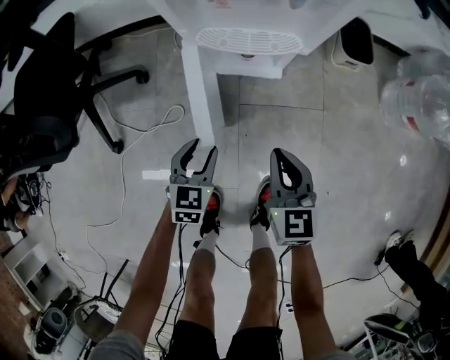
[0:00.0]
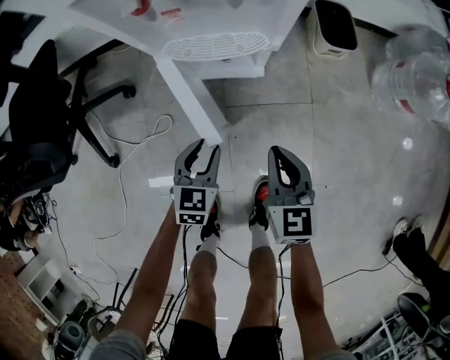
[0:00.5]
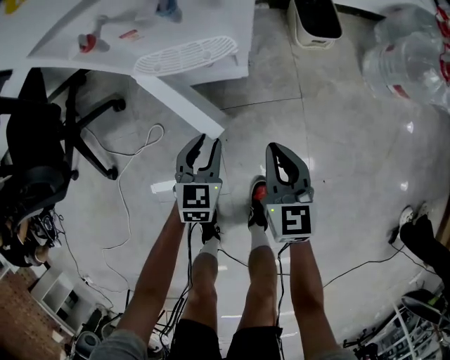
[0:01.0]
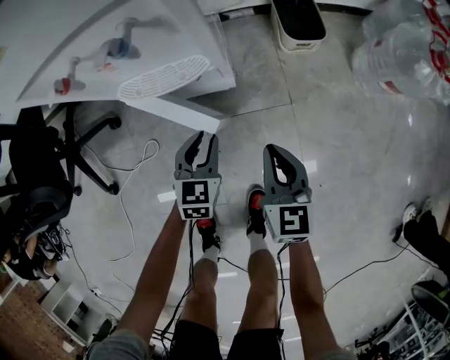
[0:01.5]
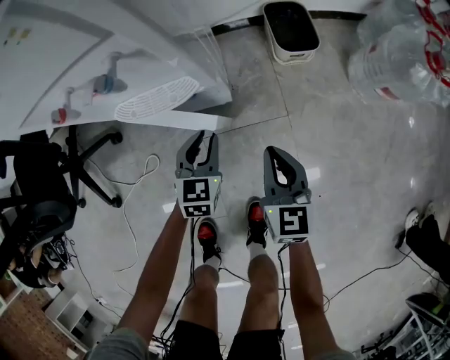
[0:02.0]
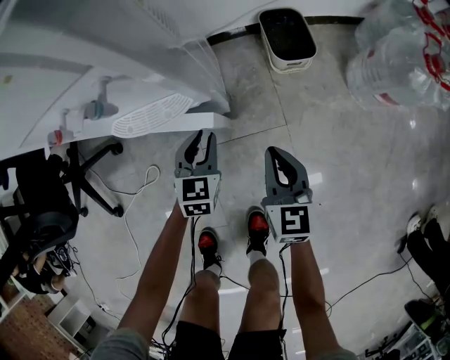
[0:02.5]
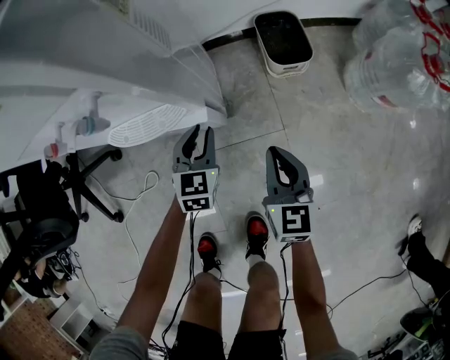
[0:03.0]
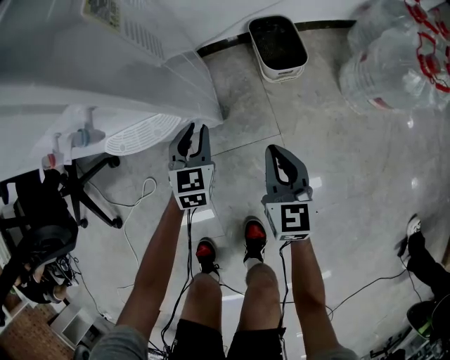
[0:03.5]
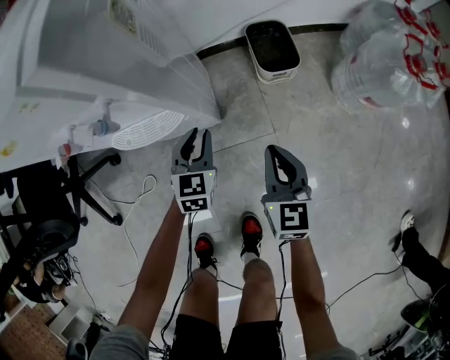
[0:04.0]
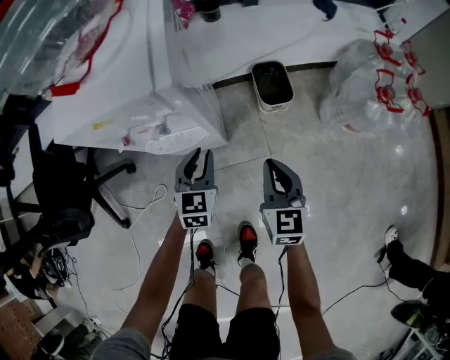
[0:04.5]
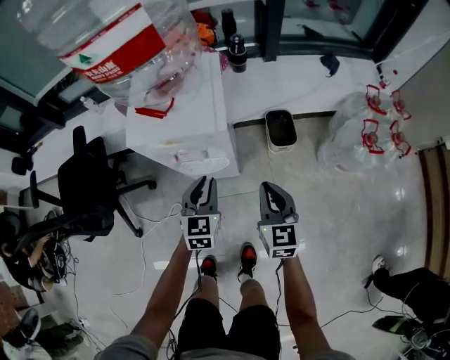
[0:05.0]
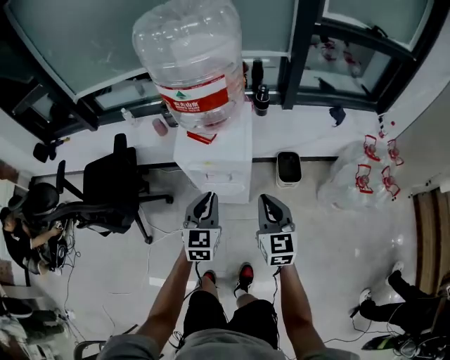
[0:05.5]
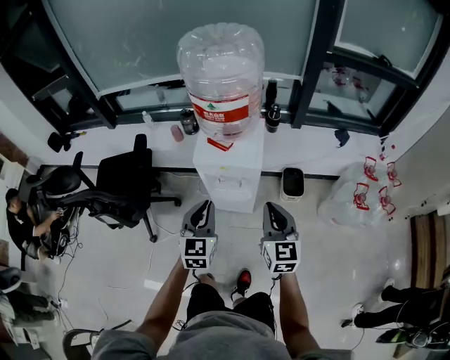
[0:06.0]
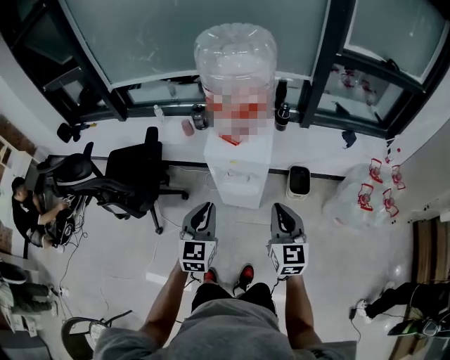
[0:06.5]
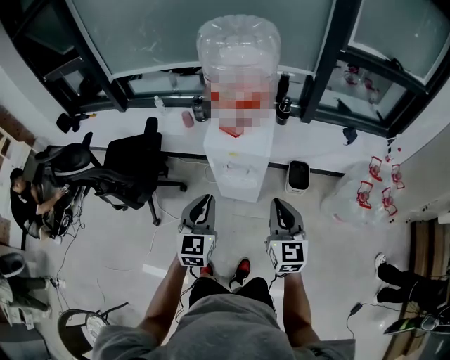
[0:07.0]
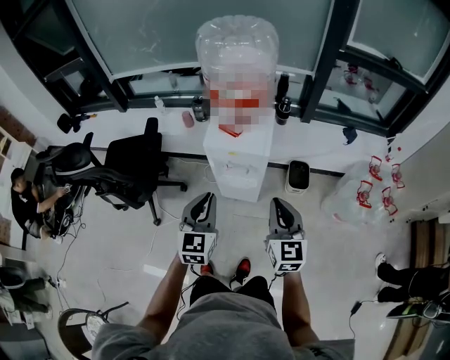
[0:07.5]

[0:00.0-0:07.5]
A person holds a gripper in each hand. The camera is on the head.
0:00.0 to 0:02.0: The two grippers go approximately 20 cm to the right and forward.
0:02.0 to 0:04.0: The right gripper travels to the right by some 5 cm. Meanwhile the left gripper is displaced forward by roughly 5 cm.
0:04.0 to 0:05.5: Both grippers move upward, about 50 cm.
0:05.5 to 0:07.5: The left gripper travels upward, backward and to the left by approximately 15 cm. Meanwhile the right gripper heads upward and backward, covering about 15 cm.

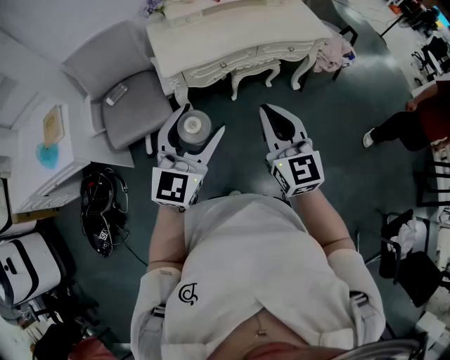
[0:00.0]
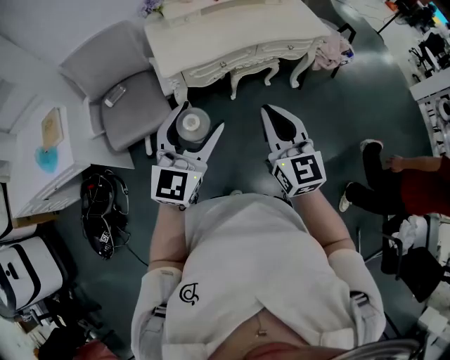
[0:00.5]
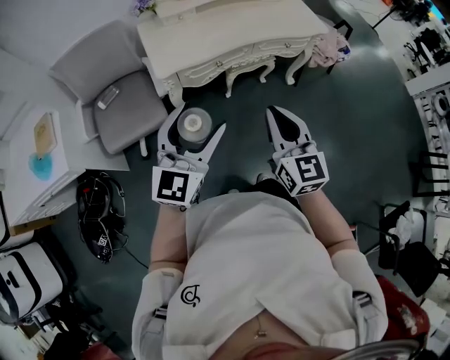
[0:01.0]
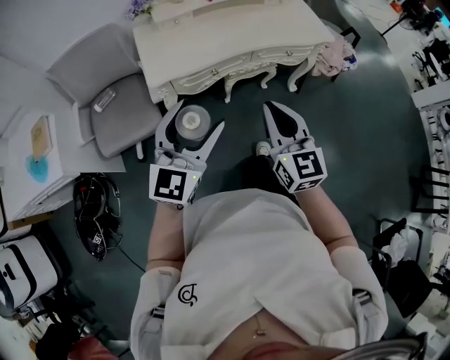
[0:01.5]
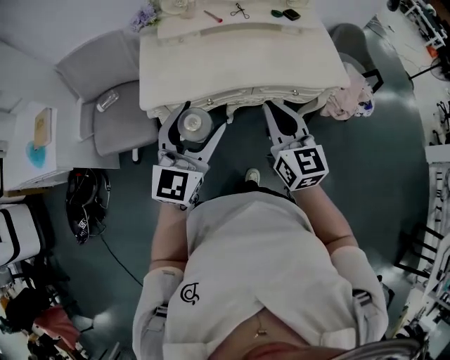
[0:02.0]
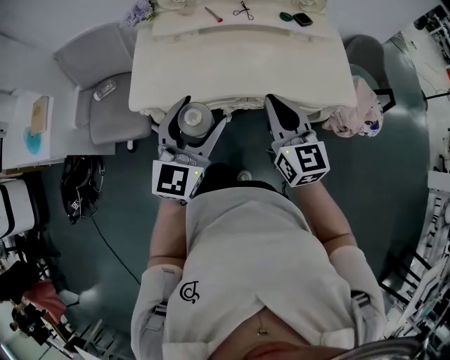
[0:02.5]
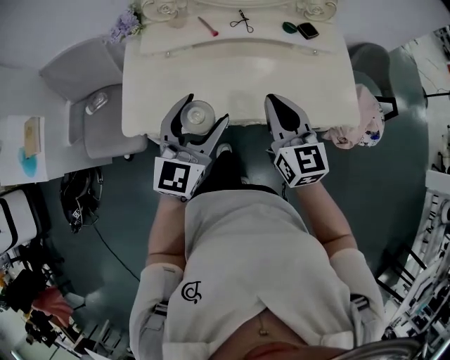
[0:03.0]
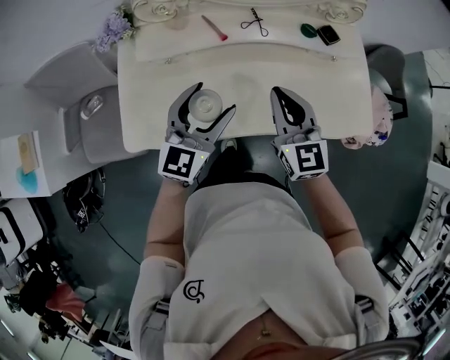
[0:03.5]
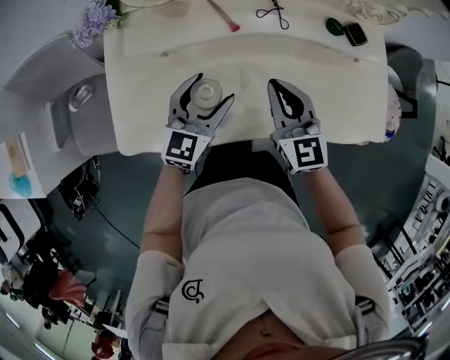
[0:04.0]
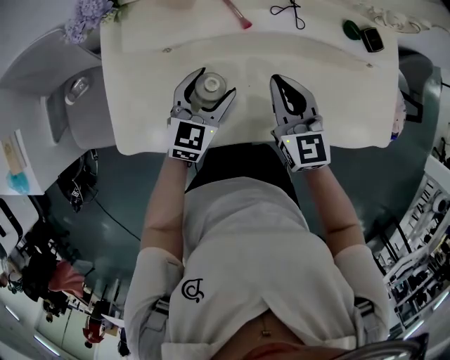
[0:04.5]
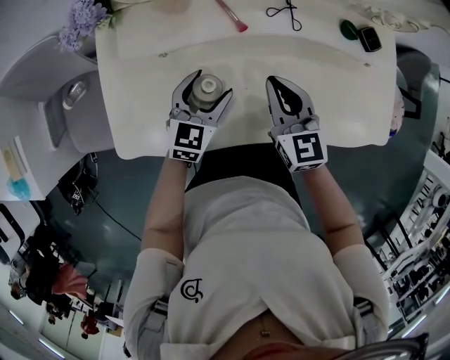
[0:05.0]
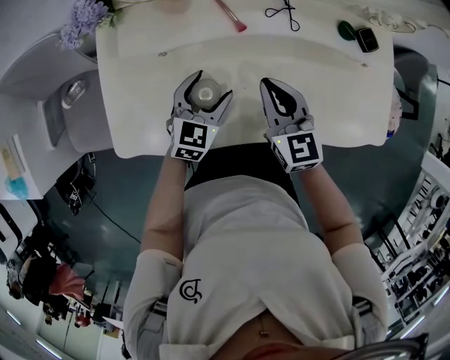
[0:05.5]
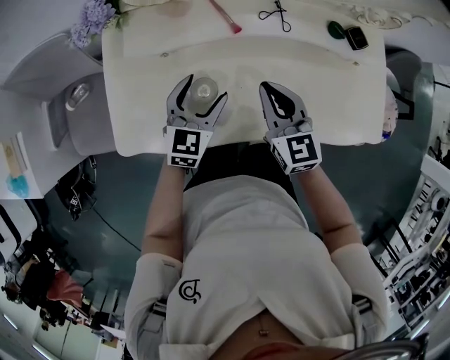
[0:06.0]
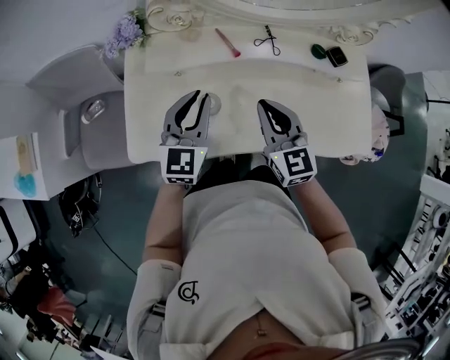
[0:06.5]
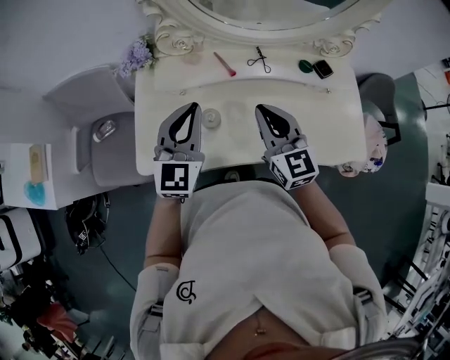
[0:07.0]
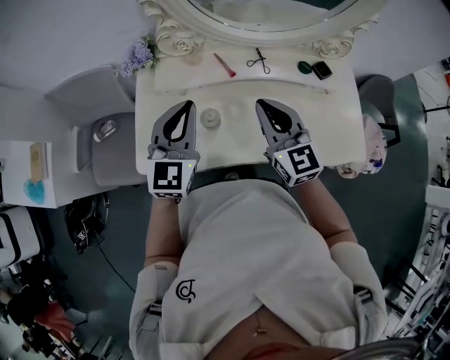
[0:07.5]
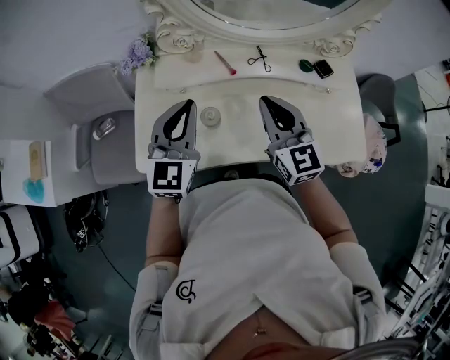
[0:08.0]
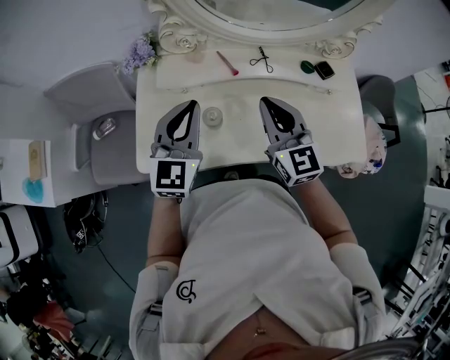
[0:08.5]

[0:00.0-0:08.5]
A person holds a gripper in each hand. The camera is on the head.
0:00.0 to 0:02.0: The left gripper travels forward and to the right by roughly 25 cm. Meanwhile the right gripper heads forward, covering some 30 cm.
0:02.0 to 0:04.0: The two grippers go about 40 cm forward and downward.
0:04.0 to 0:06.5: The right gripper moves some 5 cm; the left gripper is displaced upward by about 10 cm, and closes its fingers.
0:06.5 to 0:08.5: The two grippers go some 10 cm upward.

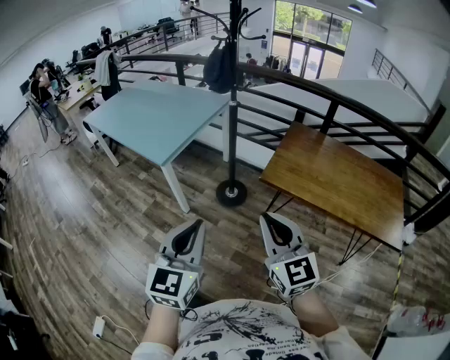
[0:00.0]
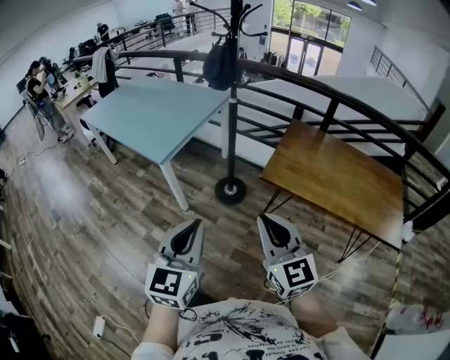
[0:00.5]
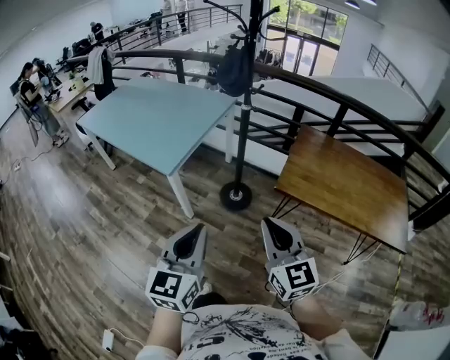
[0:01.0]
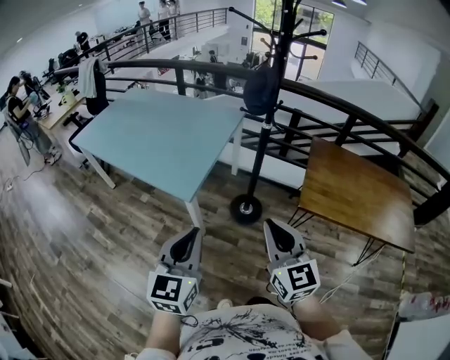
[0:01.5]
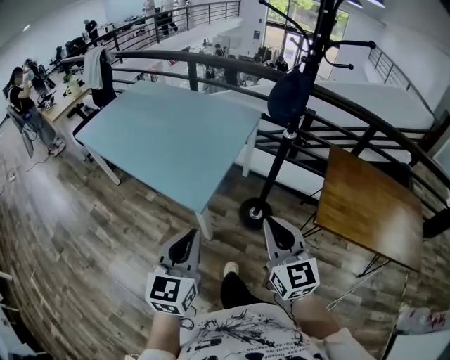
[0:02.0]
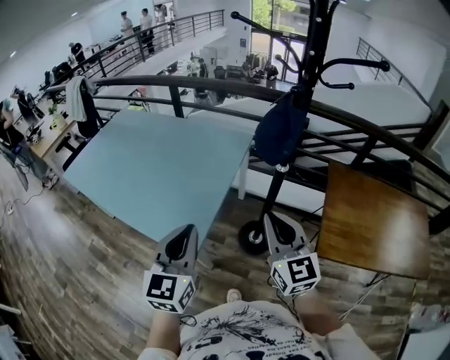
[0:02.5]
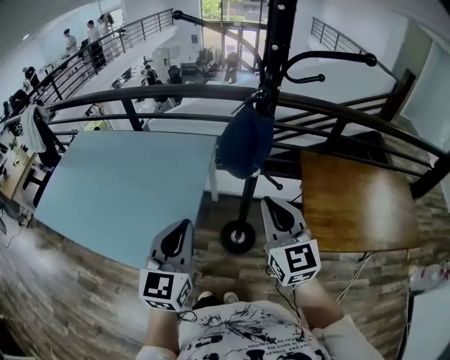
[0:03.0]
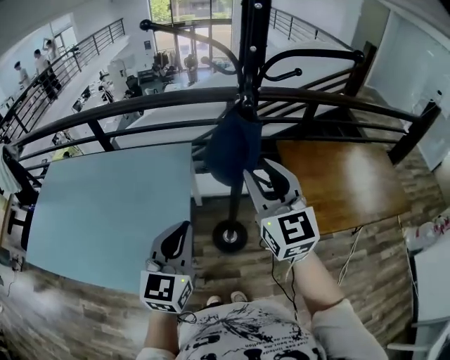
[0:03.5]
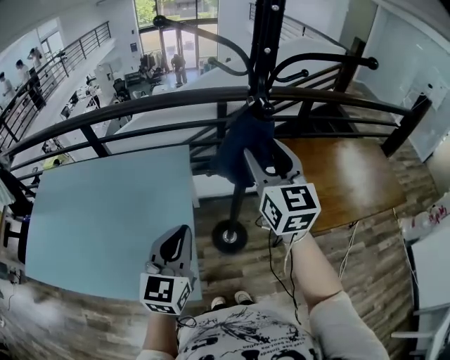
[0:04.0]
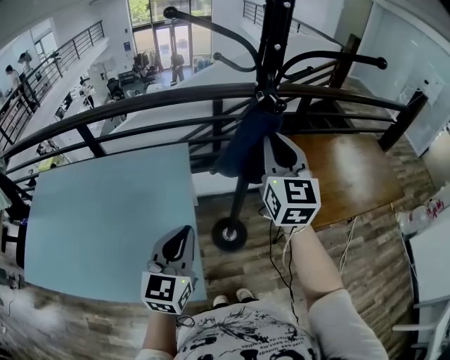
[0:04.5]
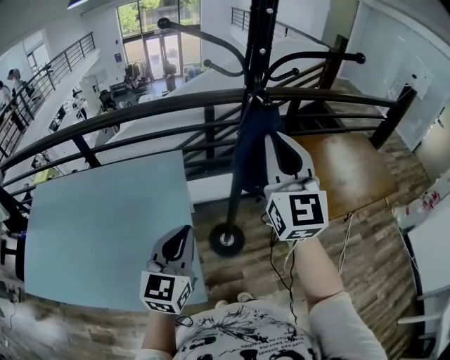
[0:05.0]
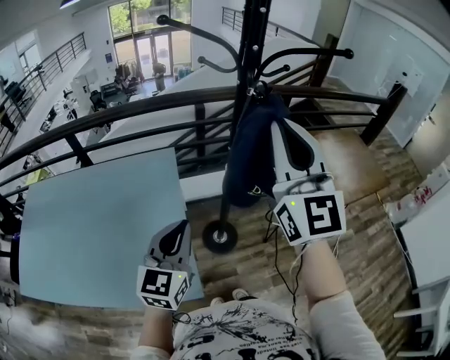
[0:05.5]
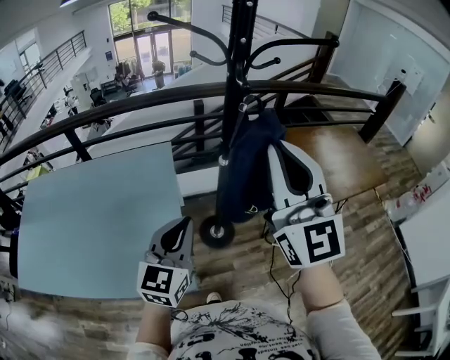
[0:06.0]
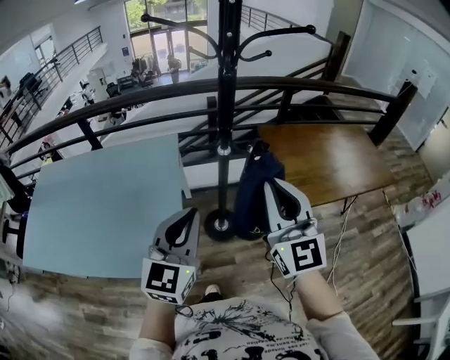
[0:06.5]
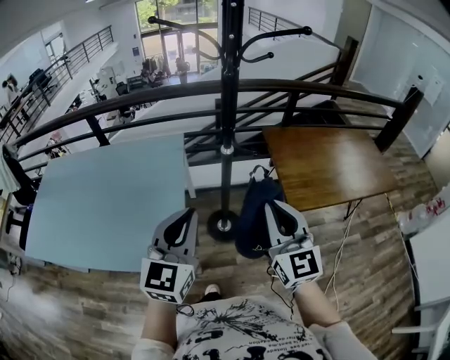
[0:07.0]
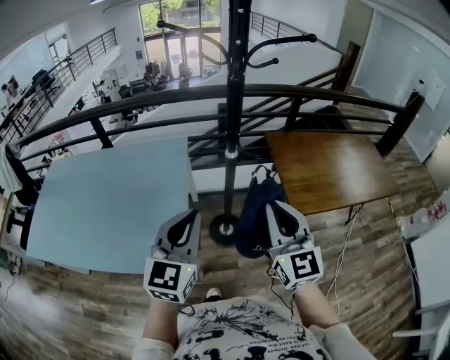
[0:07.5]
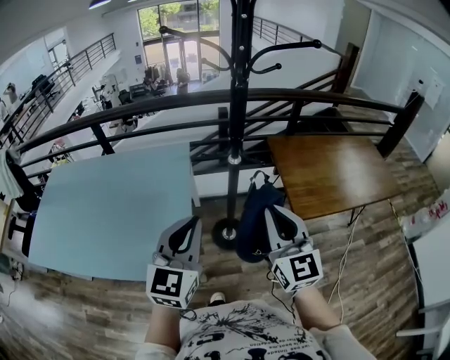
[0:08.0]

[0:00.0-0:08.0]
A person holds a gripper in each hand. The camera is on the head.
0:00.0 to 0:02.0: The left gripper goes roughly 40 cm to the left and forward, while the right gripper heads forward and to the left, covering approximately 40 cm.
0:02.0 to 0:04.0: The left gripper moves approximately 35 cm, and changes its angle by approximately 30 degrees. The right gripper ends up some 35 cm from where it was, changes its angle by some 40 degrees, and opens up.
0:04.0 to 0:06.0: The right gripper shifts approximately 20 cm backward and upward, turns by roughly 20 degrees, and closes its fingers.
0:06.0 to 0:08.0: The right gripper moves downward, about 15 cm; the left gripper moves backward, some 5 cm.

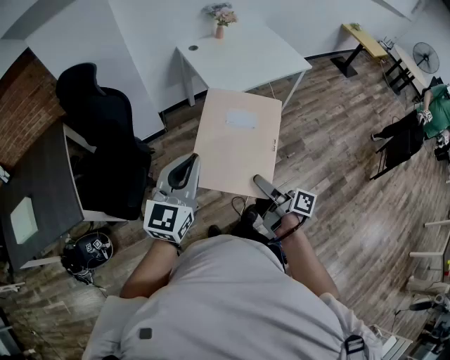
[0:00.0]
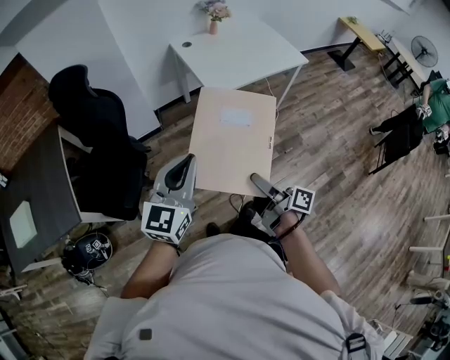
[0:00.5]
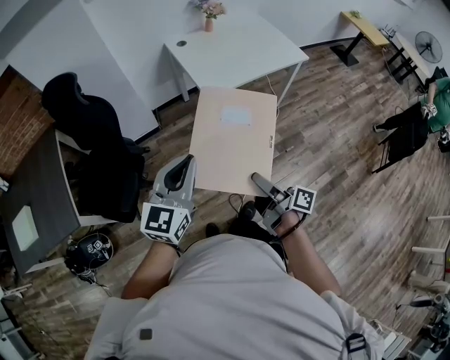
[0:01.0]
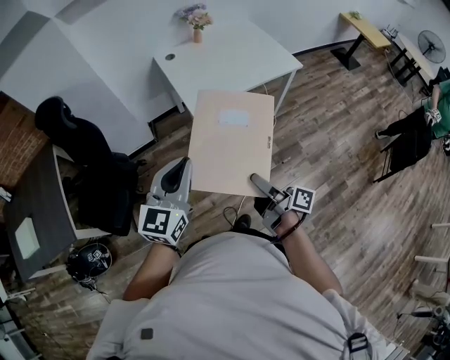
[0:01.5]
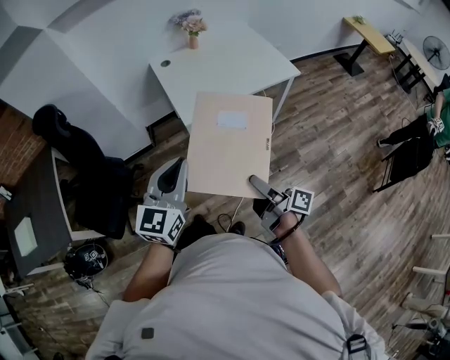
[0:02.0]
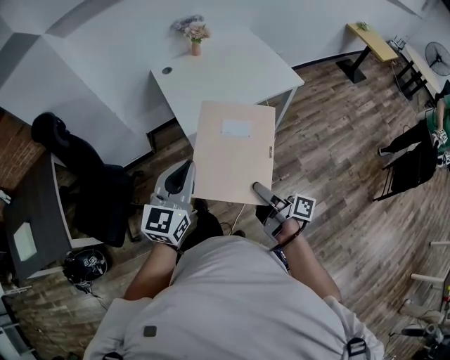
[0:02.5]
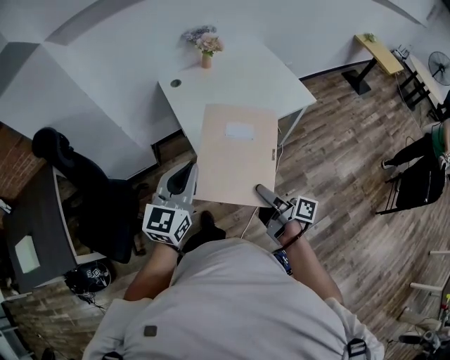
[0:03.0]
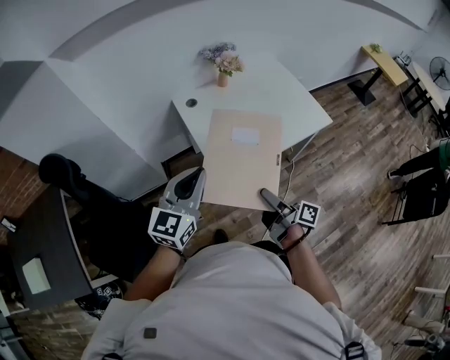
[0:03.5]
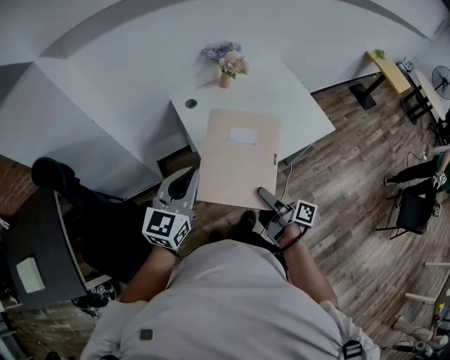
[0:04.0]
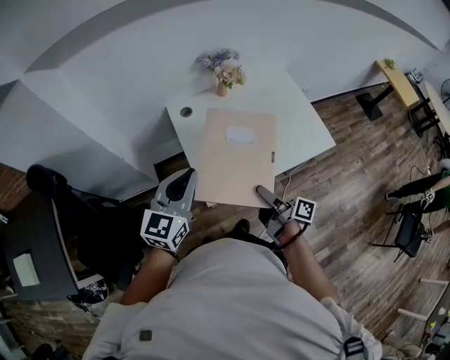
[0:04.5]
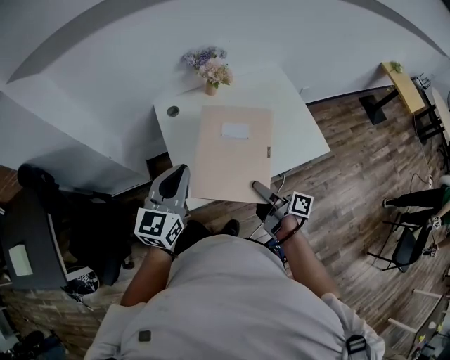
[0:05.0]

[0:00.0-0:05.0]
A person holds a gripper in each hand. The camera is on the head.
0:00.0 to 0:02.5: The grippers both shift to the right and forward by approximately 30 cm.
0:02.5 to 0:05.0: The two grippers go about 40 cm forward.
